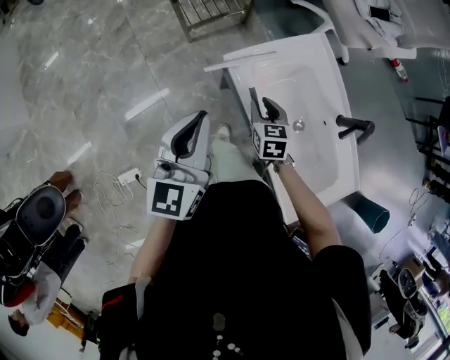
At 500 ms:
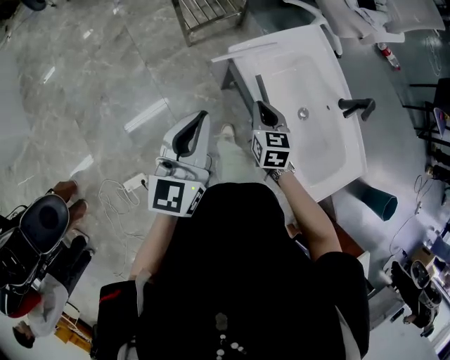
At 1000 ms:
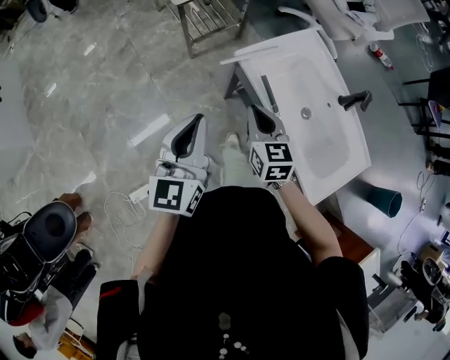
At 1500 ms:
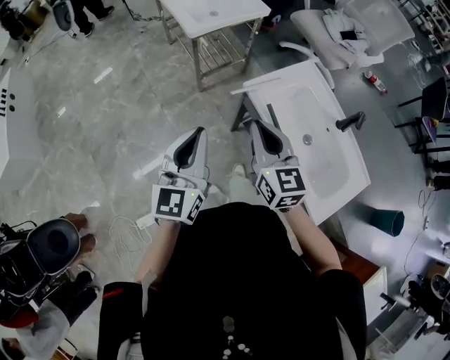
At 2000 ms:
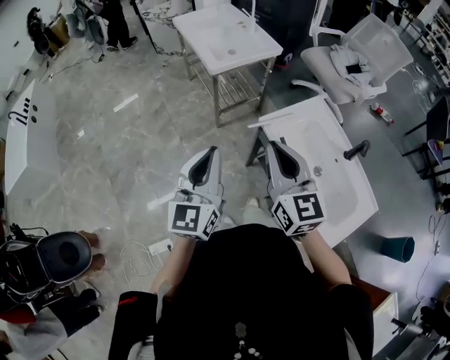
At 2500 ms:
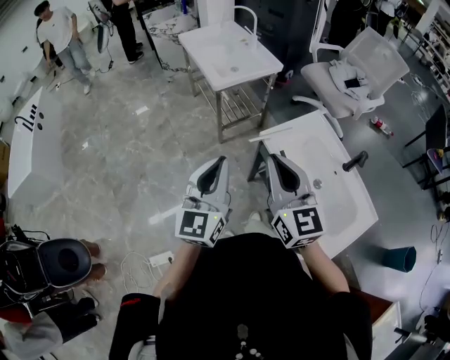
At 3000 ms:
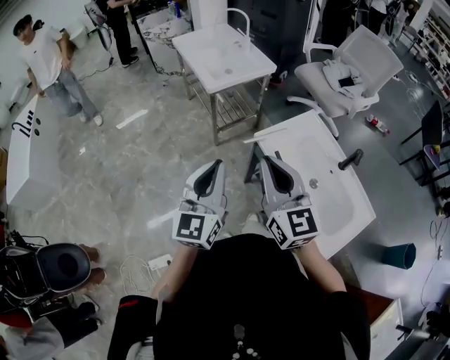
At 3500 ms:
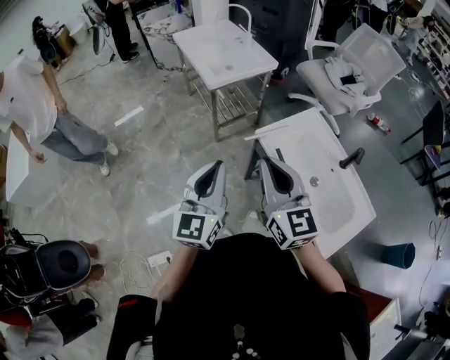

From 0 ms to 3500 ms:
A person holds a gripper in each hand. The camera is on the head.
From 0 ms to 2000 ms: The left gripper goes approximately 20 cm to the left, upward and backward. The right gripper travels upward and to the left by about 40 cm, tilts its fingers approximately 40 degrees upward, and closes its fingers.
From 2000 ms to 3500 ms: There are only small adjustments of the grippers.

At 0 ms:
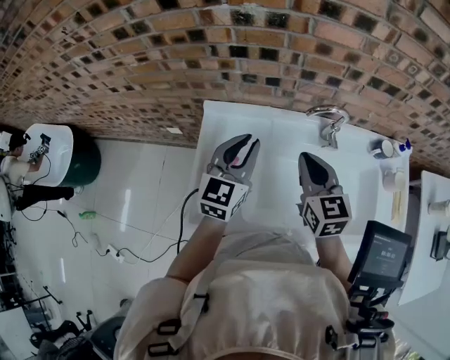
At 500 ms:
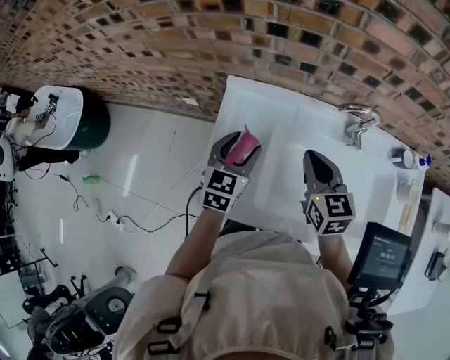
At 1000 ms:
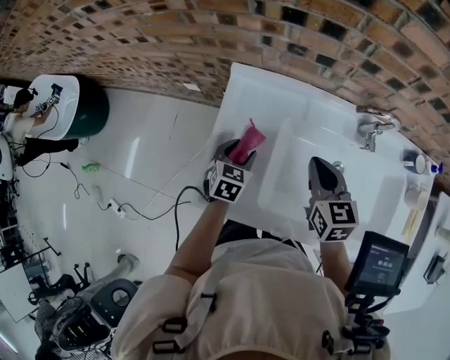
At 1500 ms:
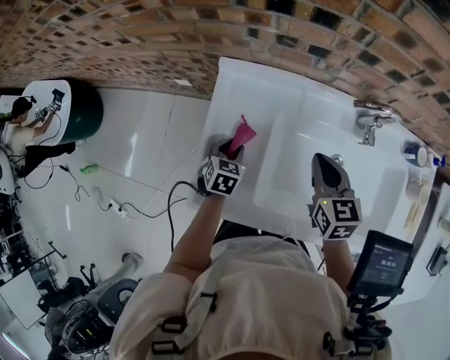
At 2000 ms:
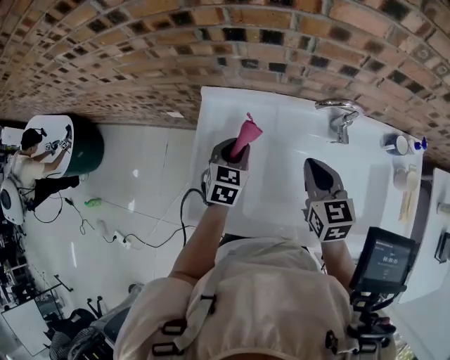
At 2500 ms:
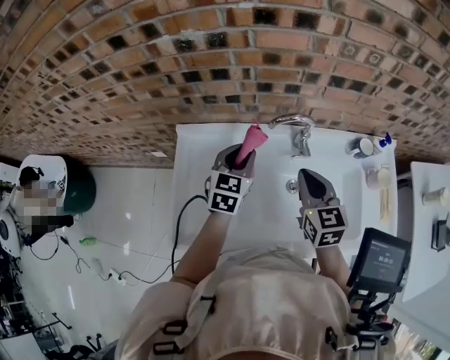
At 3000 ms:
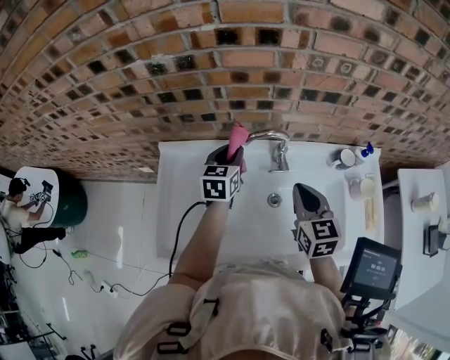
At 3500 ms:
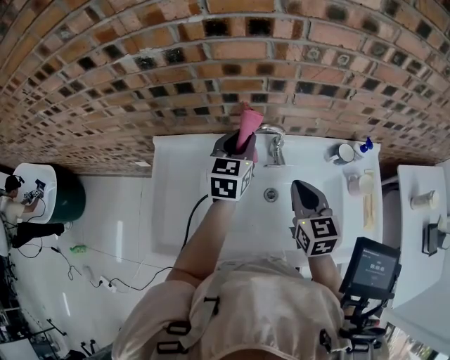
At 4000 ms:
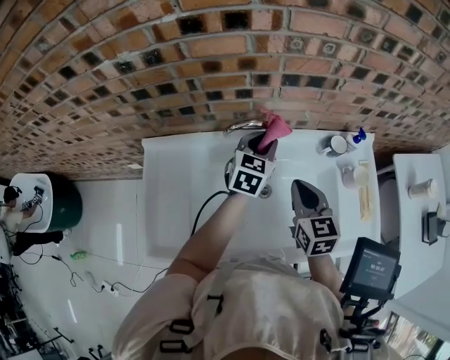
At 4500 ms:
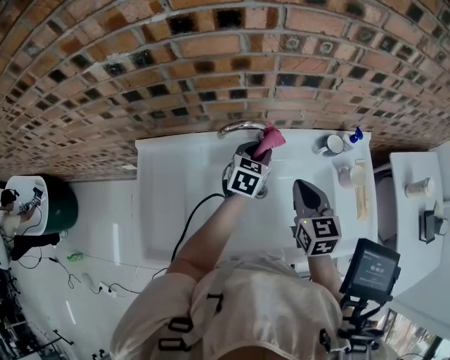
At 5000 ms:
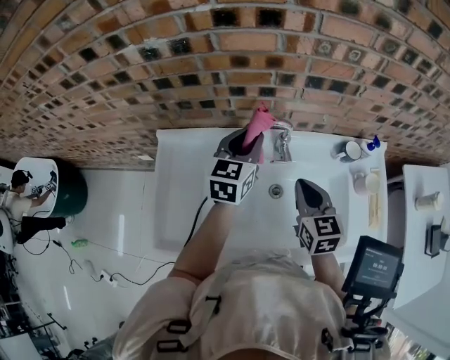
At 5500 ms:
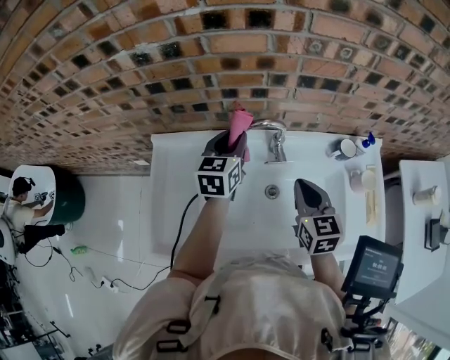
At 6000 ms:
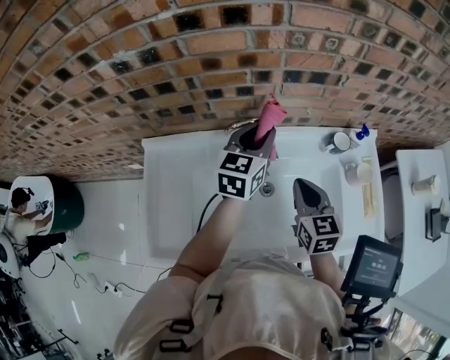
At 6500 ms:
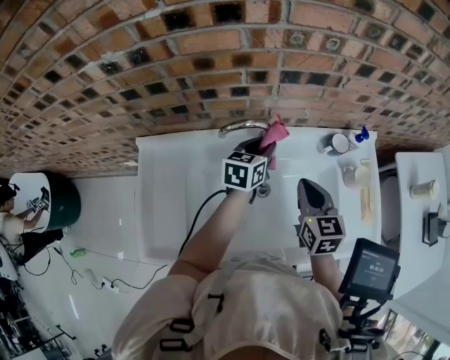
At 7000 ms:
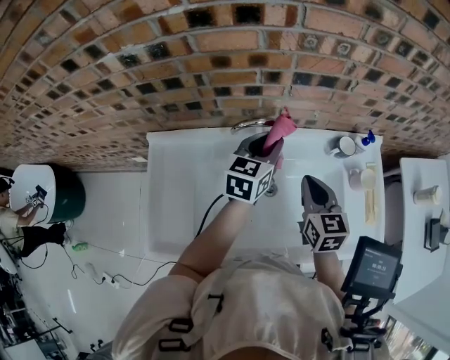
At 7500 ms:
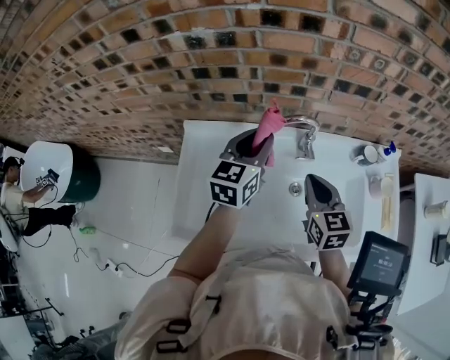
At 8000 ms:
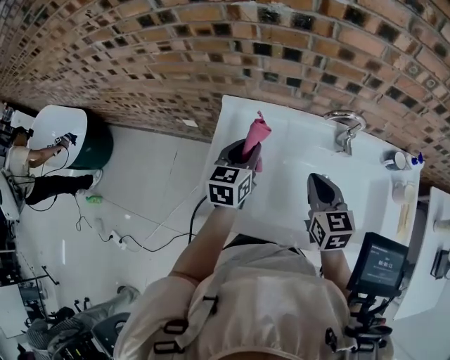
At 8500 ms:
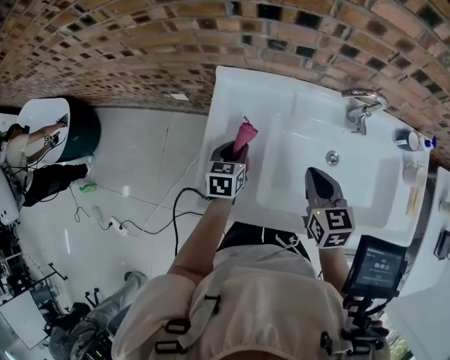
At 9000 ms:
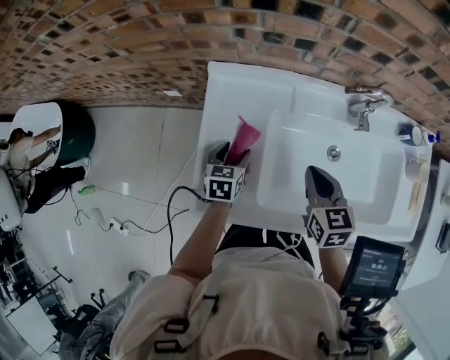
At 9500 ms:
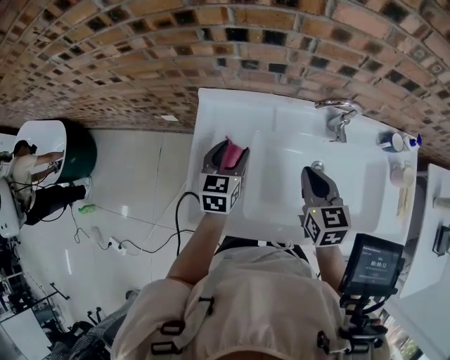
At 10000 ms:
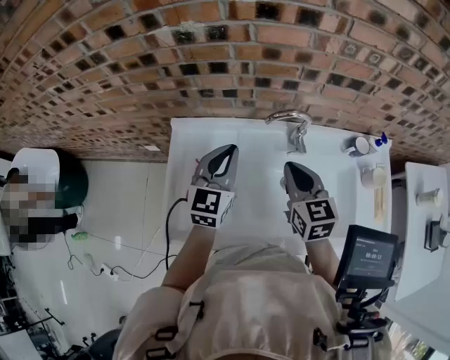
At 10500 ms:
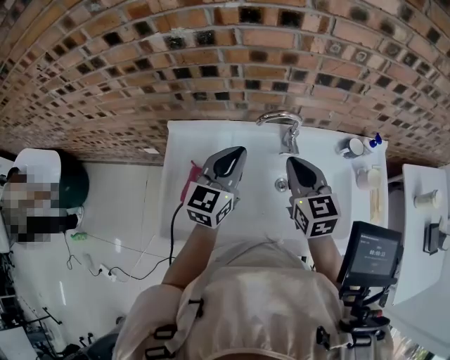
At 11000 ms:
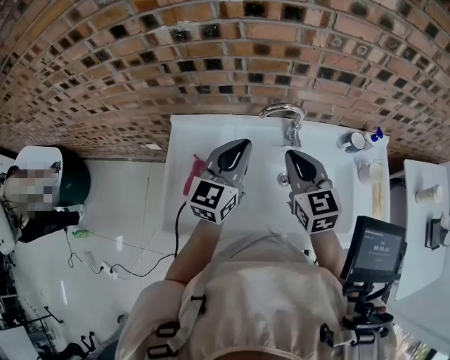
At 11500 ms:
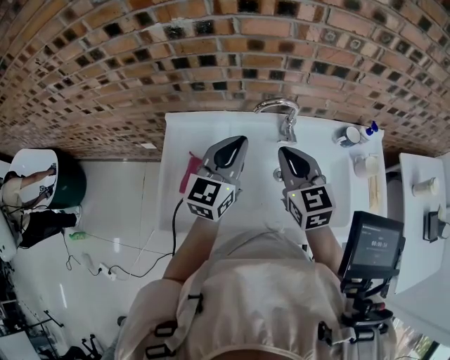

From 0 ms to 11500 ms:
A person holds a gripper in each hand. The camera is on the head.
From 0 ms to 2000 ms: The right gripper moves downward, some 5 cm, while the left gripper heads downward, covering approximately 15 cm, rotates some 30 degrees, and opens, then closes again.
From 2000 ms to 4000 ms: The right gripper moves to the right, about 20 cm. Meanwhile the left gripper moves to the right, some 30 cm, and rotates approximately 20 degrees.
From 4000 ms to 6000 ms: The left gripper moves upward, roughly 5 cm, and moves some 15 cm to the left and comes back.
From 6000 ms to 7500 ms: The right gripper moves to the left, about 10 cm; the left gripper heads to the left and backward, covering some 15 cm.
From 7500 ms to 9500 ms: The left gripper moves to the left and downward, approximately 25 cm, and opens, while the right gripper shifts about 15 cm to the left and downward.
From 9500 ms to 11500 ms: The right gripper goes roughly 15 cm upward and to the right. Meanwhile the left gripper heads upward and to the right, covering about 25 cm, changes its angle by some 30 degrees, and closes up.

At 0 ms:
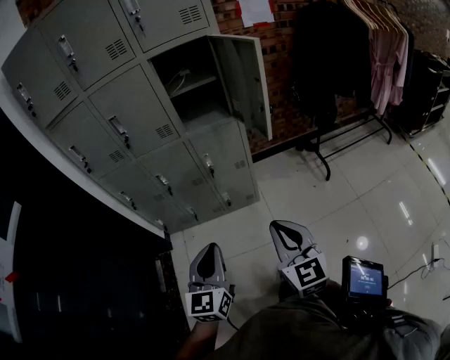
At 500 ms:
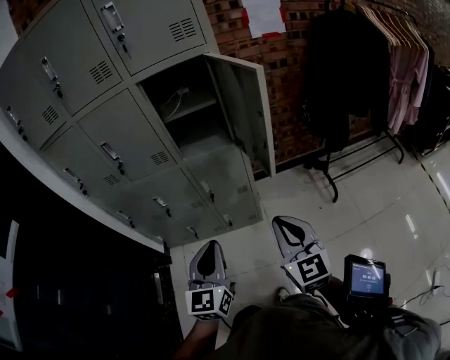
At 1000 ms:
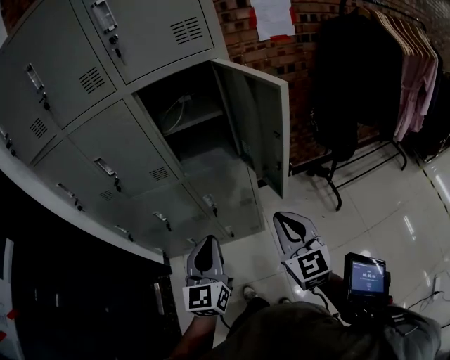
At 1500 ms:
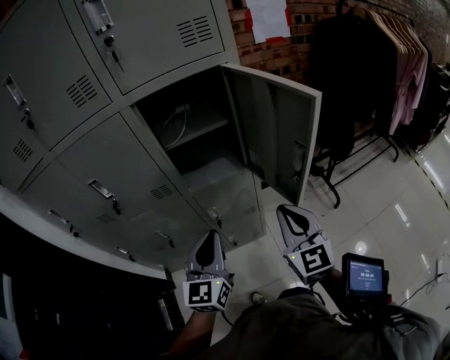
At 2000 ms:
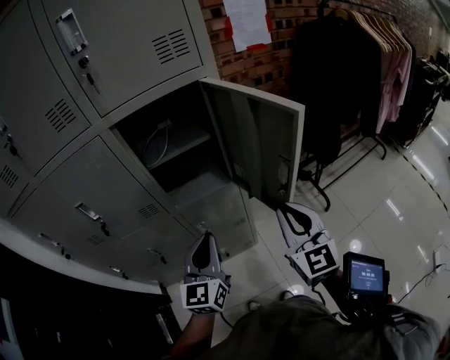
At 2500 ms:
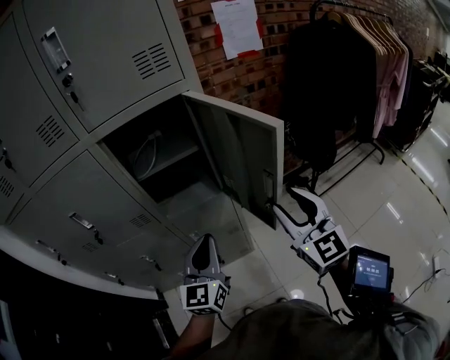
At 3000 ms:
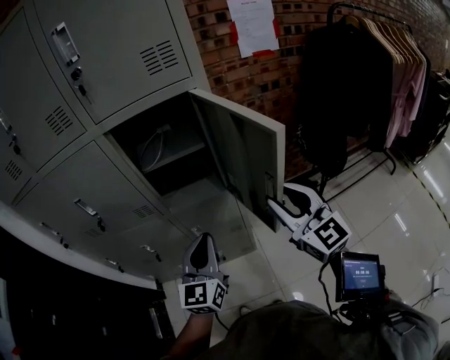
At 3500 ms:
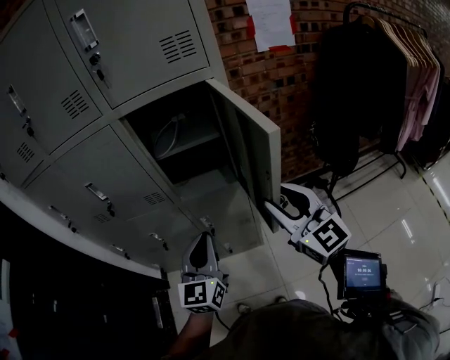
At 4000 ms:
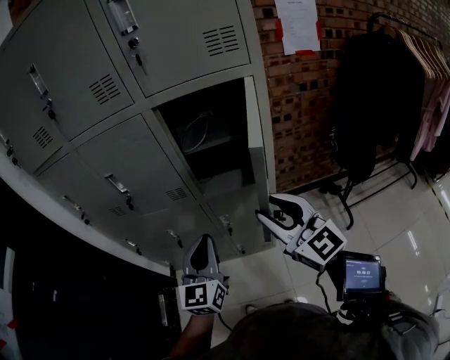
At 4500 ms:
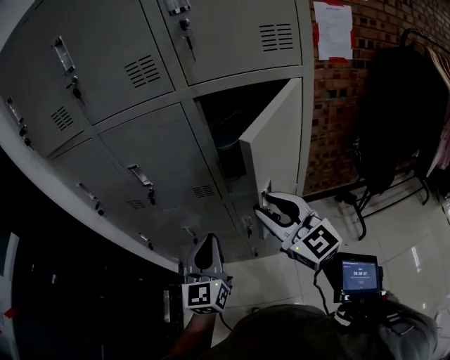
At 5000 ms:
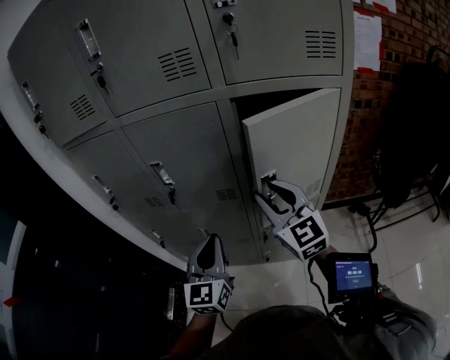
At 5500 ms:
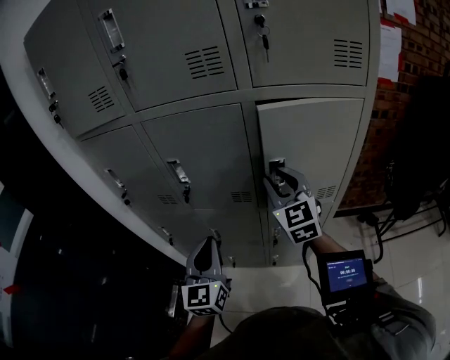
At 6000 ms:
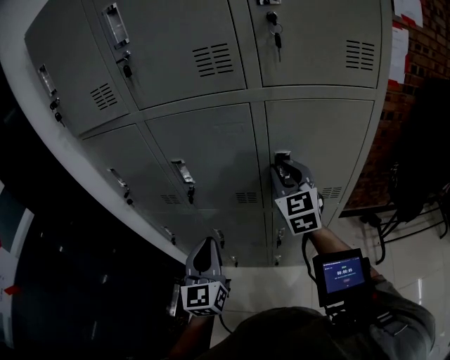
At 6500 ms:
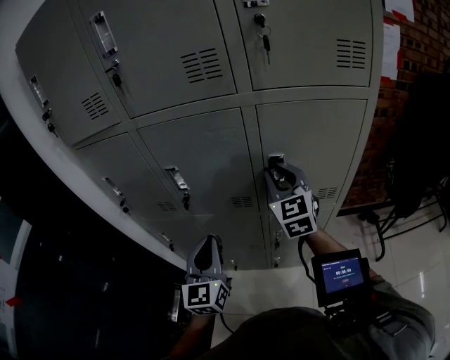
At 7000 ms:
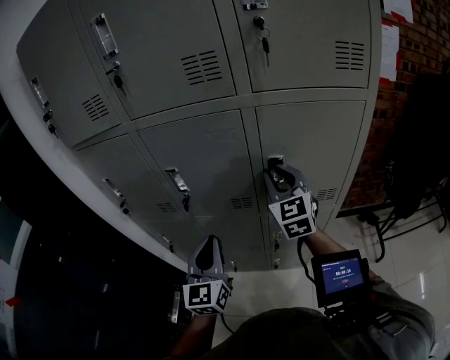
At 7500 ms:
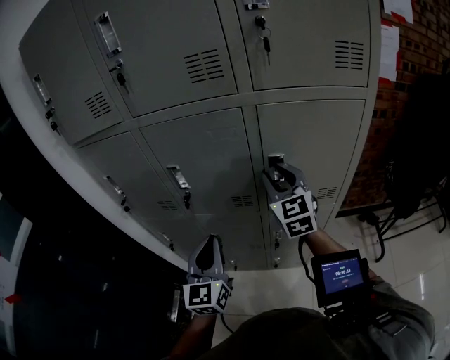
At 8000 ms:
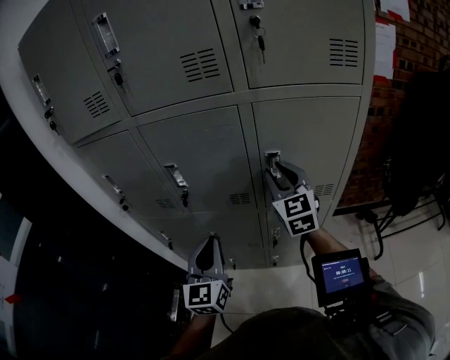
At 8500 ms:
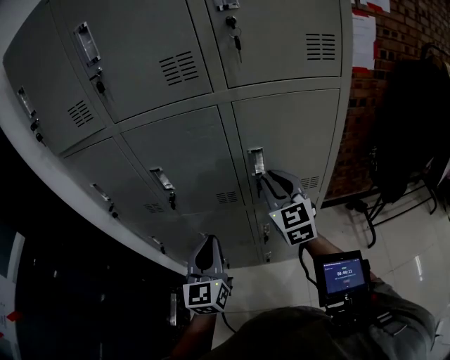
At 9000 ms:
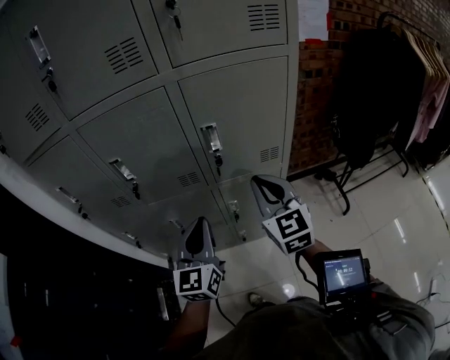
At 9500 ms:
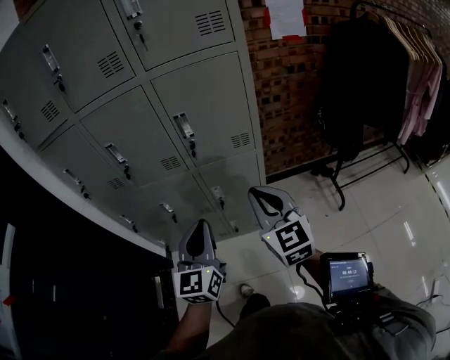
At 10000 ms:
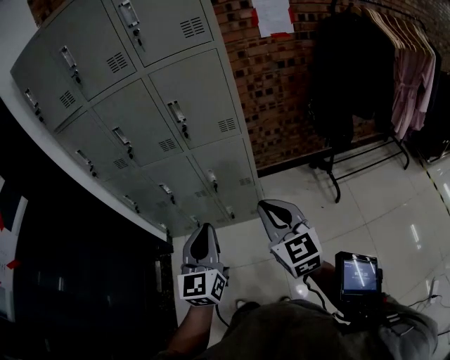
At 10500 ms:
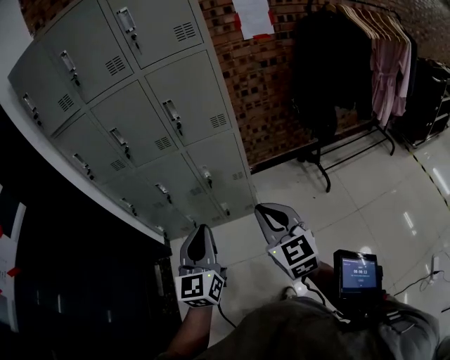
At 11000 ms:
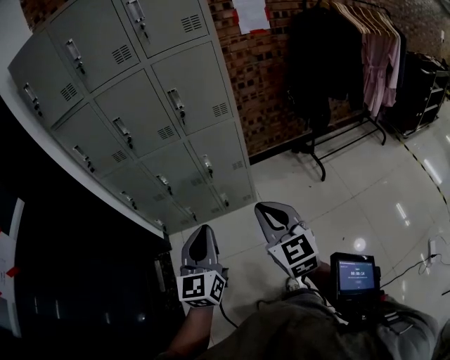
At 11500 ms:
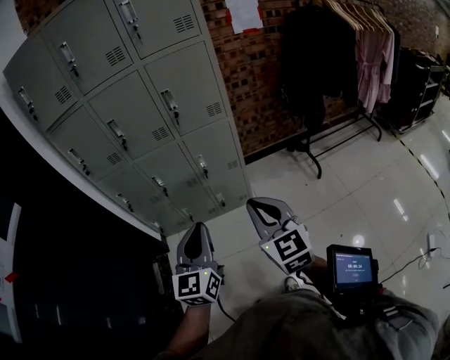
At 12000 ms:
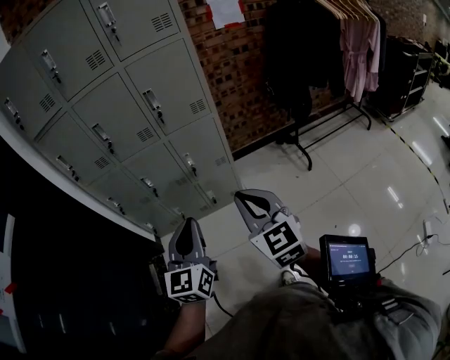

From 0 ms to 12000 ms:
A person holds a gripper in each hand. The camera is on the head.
From 0 ms to 2000 ms: Both grippers move forward, roughly 35 cm.
From 2000 ms to 4000 ms: The left gripper shifts by roughly 5 cm; the right gripper ends up approximately 10 cm from where it was, changes its angle by some 40 degrees, and opens its fingers.
From 4000 ms to 6000 ms: The right gripper travels forward and to the left by about 30 cm, and turns by about 20 degrees; the left gripper shifts roughly 20 cm to the left and forward.
From 6000 ms to 8000 ms: The grippers make only small movements.
From 8000 ms to 10000 ms: Both grippers move backward and to the right, approximately 40 cm. The right gripper closes up.
From 10000 ms to 12000 ms: The grippers both shift backward and to the left by approximately 15 cm.
